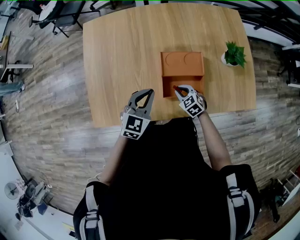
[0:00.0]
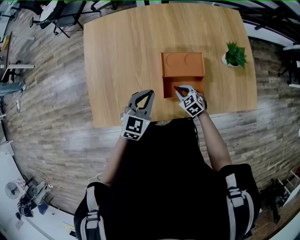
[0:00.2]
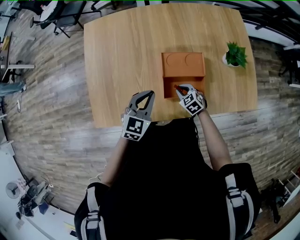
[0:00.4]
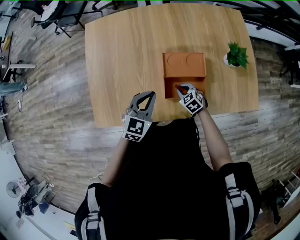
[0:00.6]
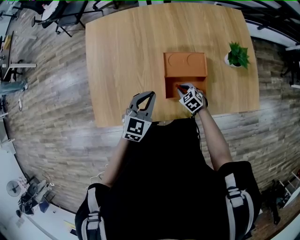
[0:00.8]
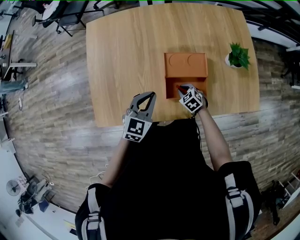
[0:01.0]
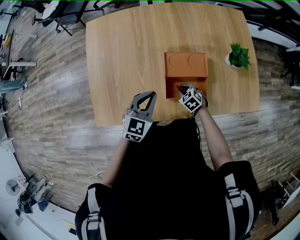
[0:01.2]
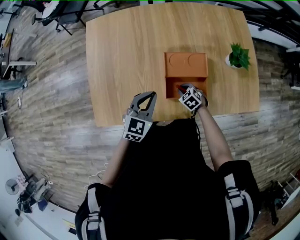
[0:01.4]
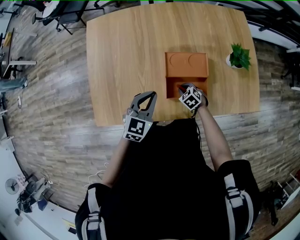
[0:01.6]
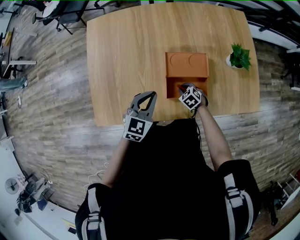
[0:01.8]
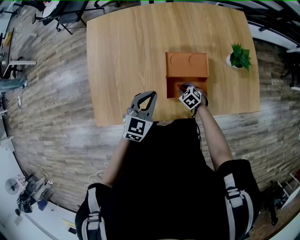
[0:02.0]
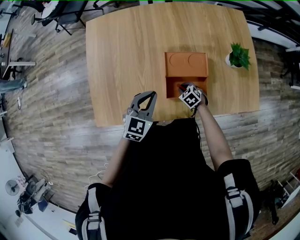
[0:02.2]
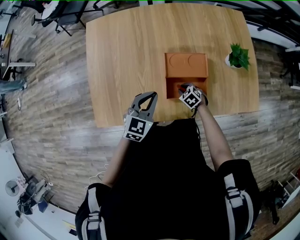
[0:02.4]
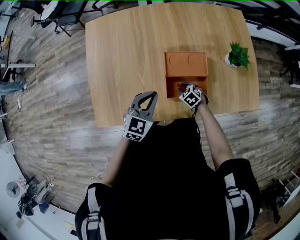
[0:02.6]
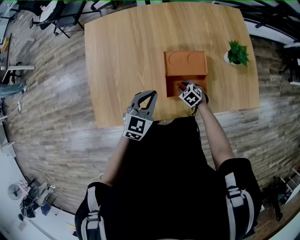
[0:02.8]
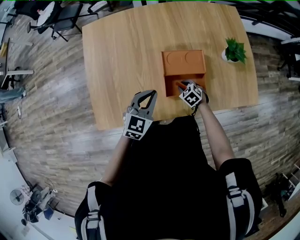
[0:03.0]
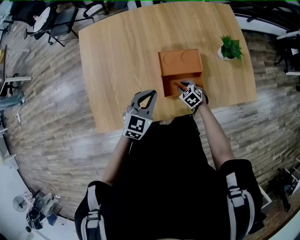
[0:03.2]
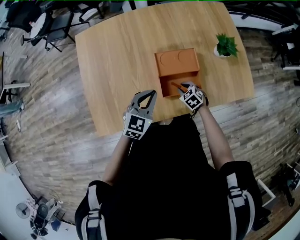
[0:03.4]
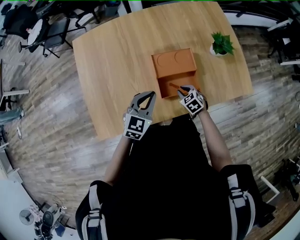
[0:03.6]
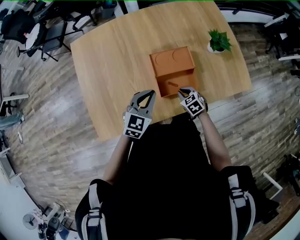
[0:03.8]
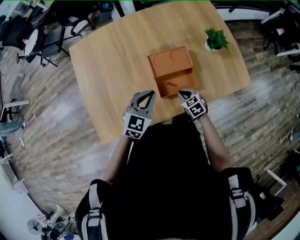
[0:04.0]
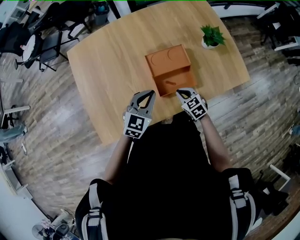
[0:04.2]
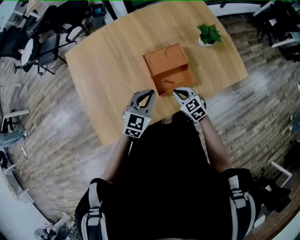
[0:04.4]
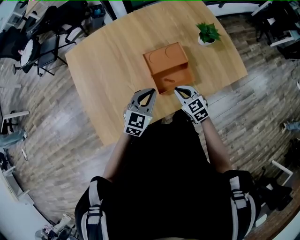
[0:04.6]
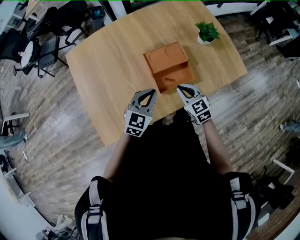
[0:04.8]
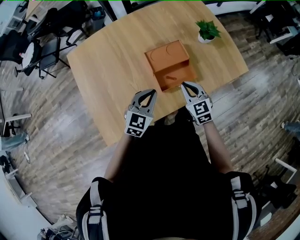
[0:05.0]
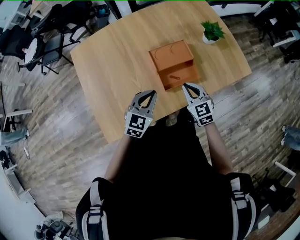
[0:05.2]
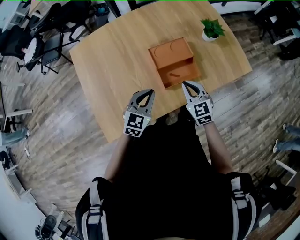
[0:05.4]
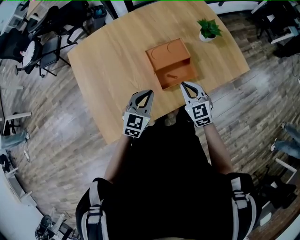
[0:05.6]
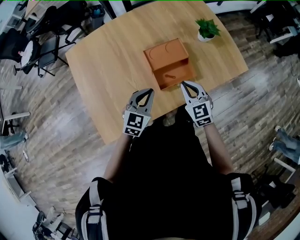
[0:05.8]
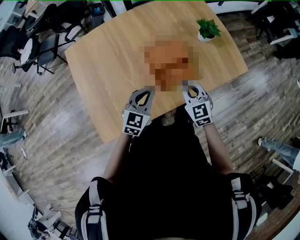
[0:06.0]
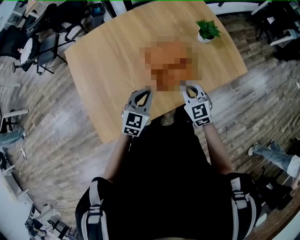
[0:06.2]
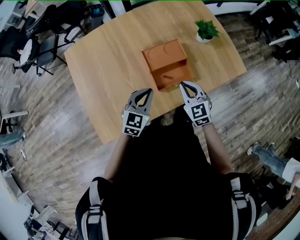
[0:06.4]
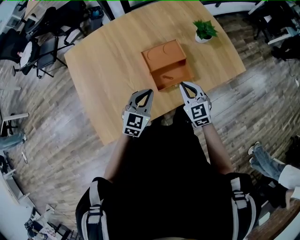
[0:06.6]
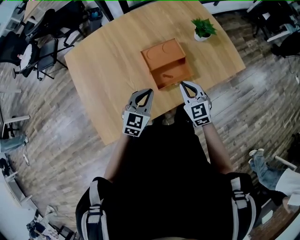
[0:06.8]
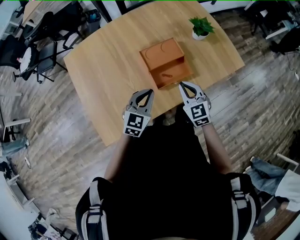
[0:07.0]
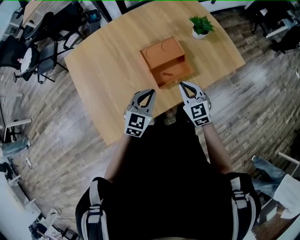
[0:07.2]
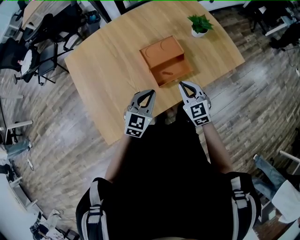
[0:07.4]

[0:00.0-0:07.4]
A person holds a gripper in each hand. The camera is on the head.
0:00.0 to 0:01.4: The right gripper goes roughly 5 cm downward.
0:01.4 to 0:03.0: Both grippers stay about where they are.
0:03.0 to 0:04.4: The right gripper travels upward and backward by about 15 cm, and turns by some 30 degrees.
0:04.4 to 0:06.0: The right gripper moves upward, roughly 10 cm, and turns by some 20 degrees.
0:06.0 to 0:07.4: The grippers make only small movements.

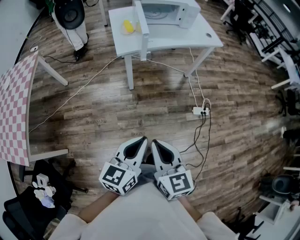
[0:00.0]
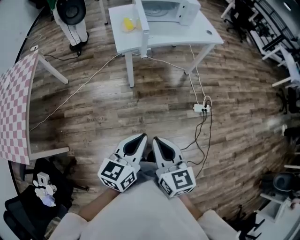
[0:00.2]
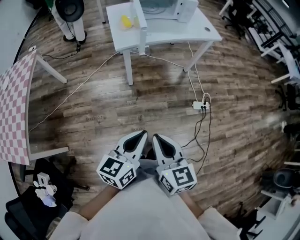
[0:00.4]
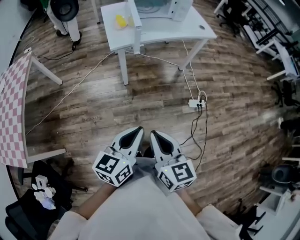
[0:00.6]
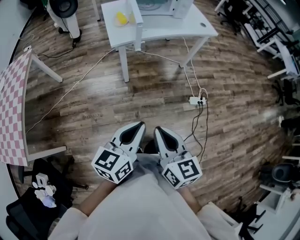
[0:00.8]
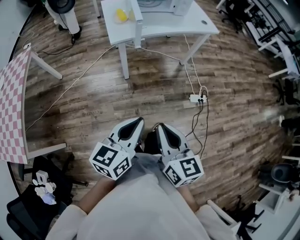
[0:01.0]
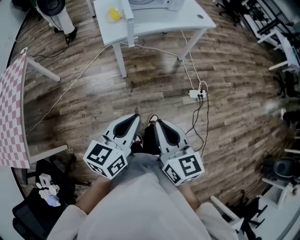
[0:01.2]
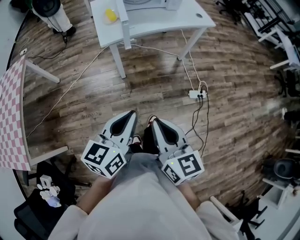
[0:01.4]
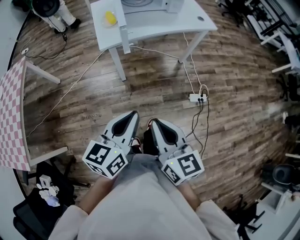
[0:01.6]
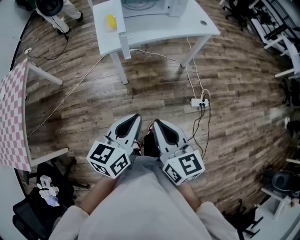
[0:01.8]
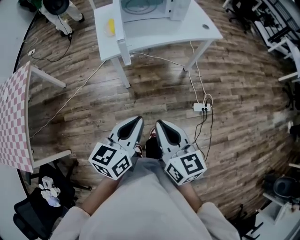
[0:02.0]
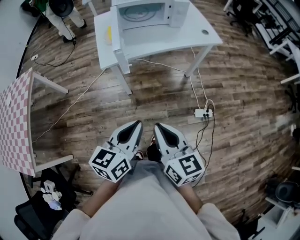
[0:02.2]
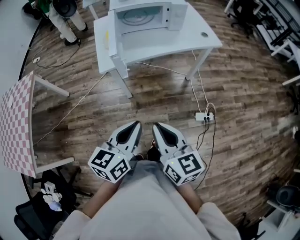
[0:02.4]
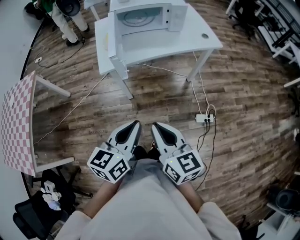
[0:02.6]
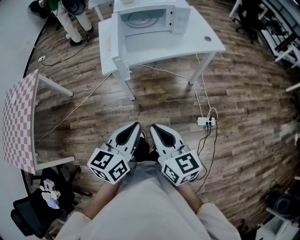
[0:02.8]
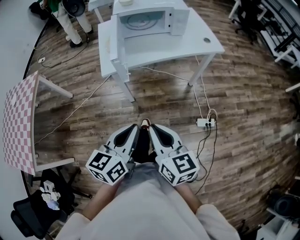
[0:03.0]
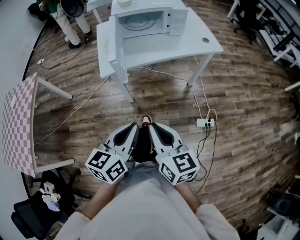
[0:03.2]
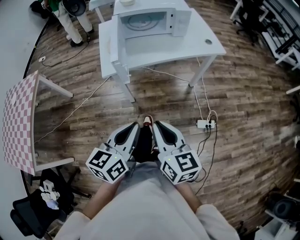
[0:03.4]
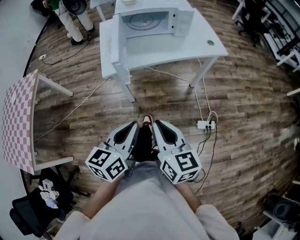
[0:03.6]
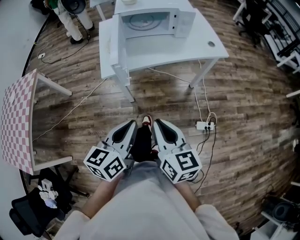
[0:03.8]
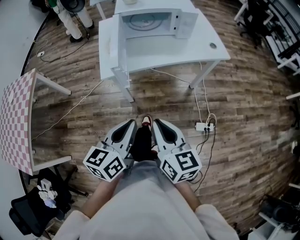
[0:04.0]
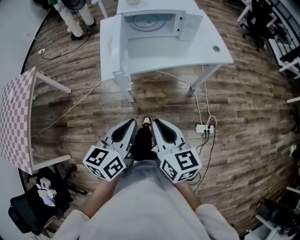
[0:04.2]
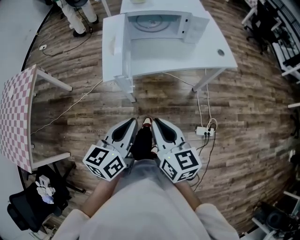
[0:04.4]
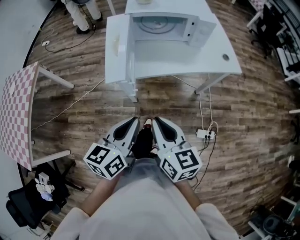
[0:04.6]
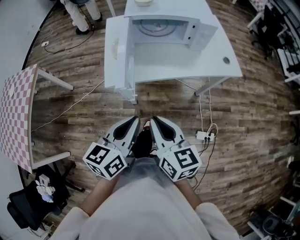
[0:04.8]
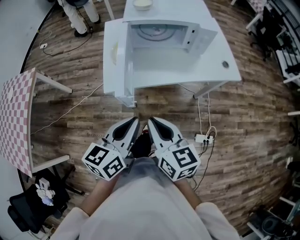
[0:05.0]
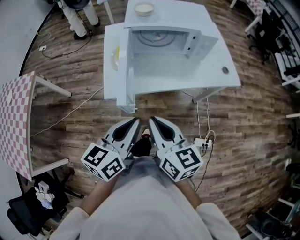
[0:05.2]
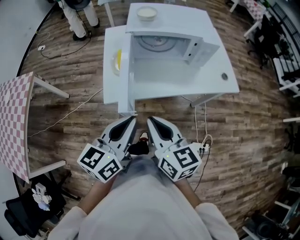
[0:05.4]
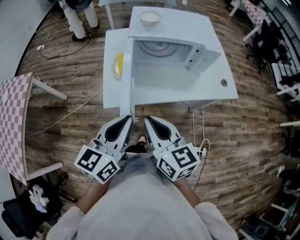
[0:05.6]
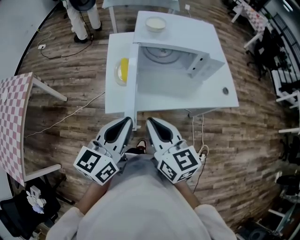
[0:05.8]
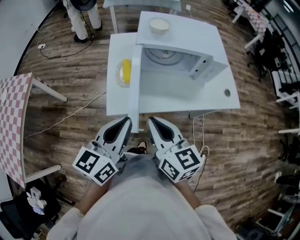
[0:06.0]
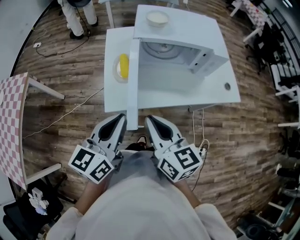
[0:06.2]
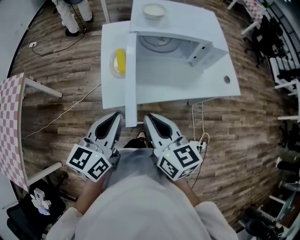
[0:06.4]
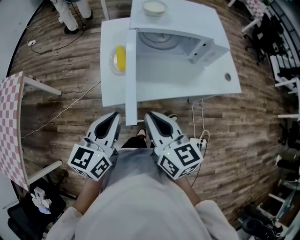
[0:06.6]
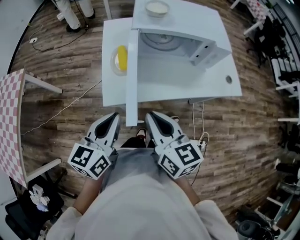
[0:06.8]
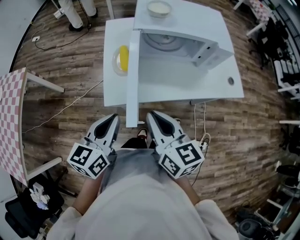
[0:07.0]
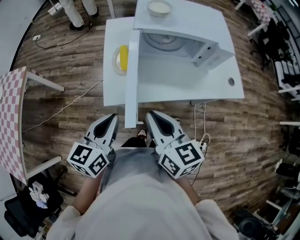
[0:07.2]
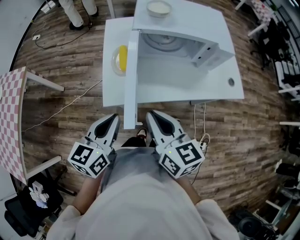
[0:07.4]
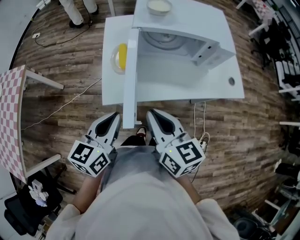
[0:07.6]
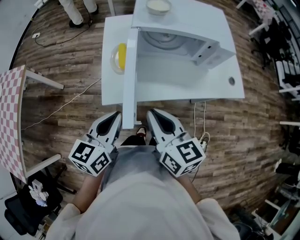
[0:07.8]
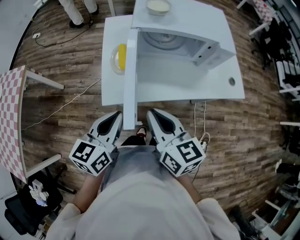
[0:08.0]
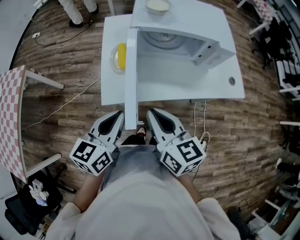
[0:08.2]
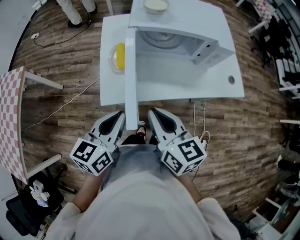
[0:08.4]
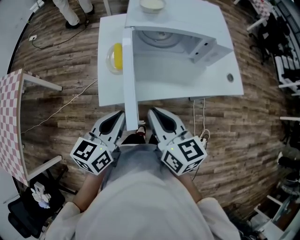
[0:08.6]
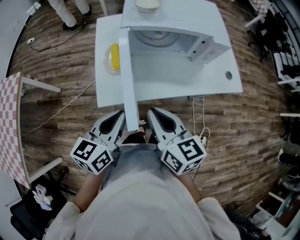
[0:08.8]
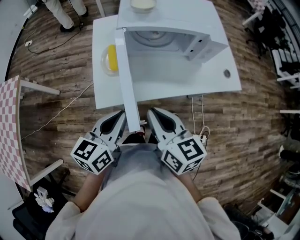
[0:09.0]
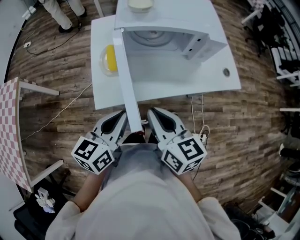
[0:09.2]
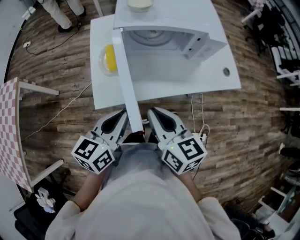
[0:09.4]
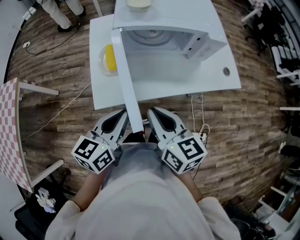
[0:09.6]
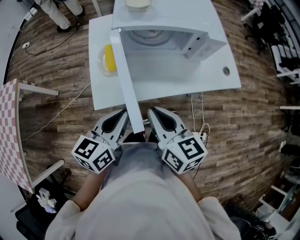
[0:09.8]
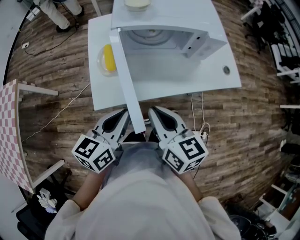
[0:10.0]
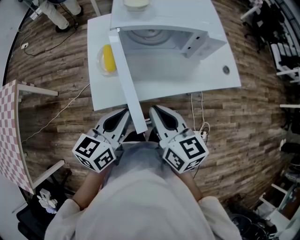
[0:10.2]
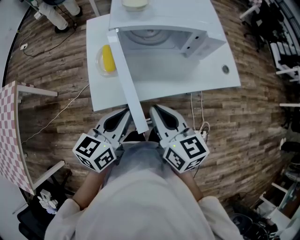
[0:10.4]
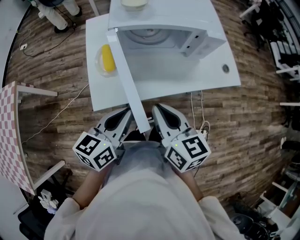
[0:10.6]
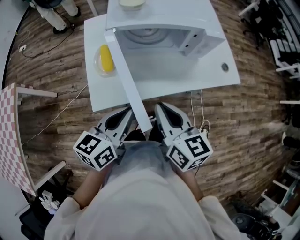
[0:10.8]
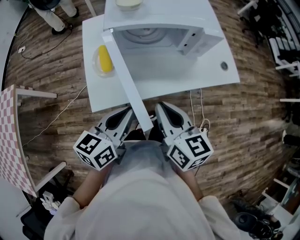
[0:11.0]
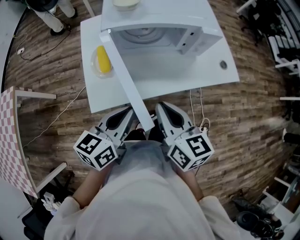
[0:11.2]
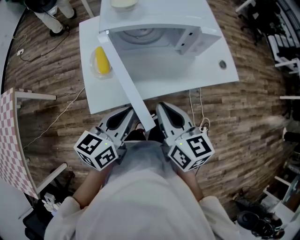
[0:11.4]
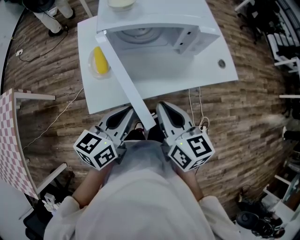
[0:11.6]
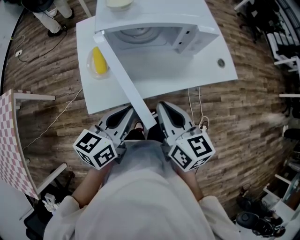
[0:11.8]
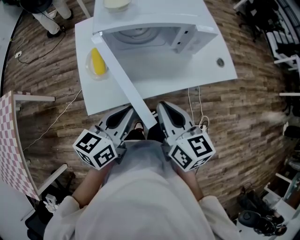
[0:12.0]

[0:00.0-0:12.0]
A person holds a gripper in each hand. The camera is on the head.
0:00.0 to 0:01.6: The left gripper shifts about 10 cm forward. The right gripper moves forward and to the right, some 10 cm.
0:01.6 to 0:03.0: Both grippers move forward and to the right, approximately 10 cm.
0:03.0 to 0:04.4: Both grippers move forward, some 10 cm.
0:04.4 to 0:06.0: The grippers both shift forward by some 20 cm.
0:06.0 to 0:07.6: The left gripper is displaced downward by some 5 cm.
0:07.6 to 0:09.0: The left gripper moves some 5 cm.
0:09.0 to 0:10.4: The grippers make only small movements.
0:10.4 to 0:12.0: The right gripper moves to the right, about 5 cm.

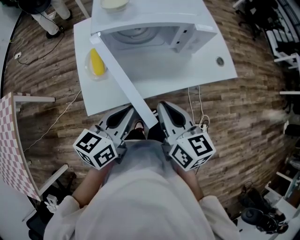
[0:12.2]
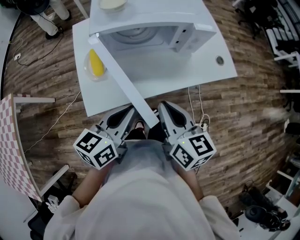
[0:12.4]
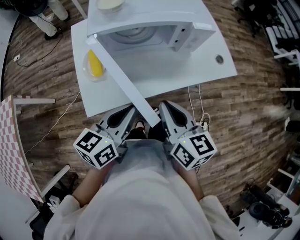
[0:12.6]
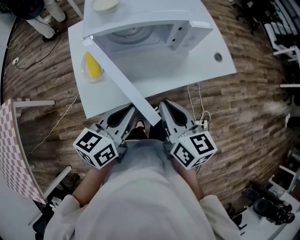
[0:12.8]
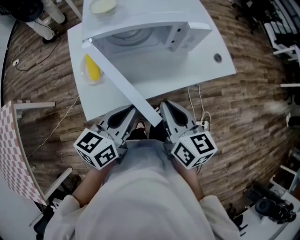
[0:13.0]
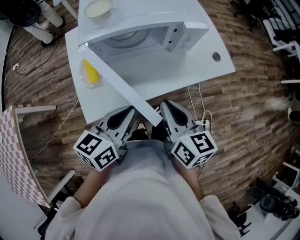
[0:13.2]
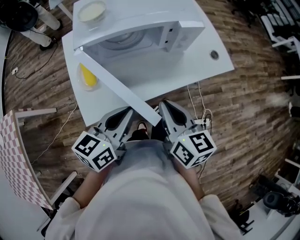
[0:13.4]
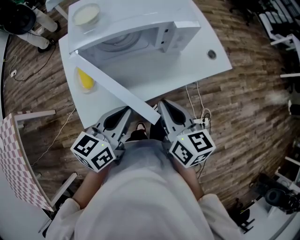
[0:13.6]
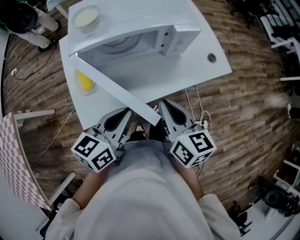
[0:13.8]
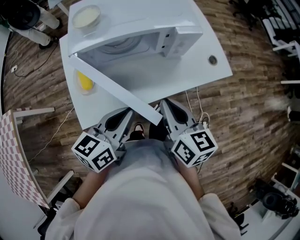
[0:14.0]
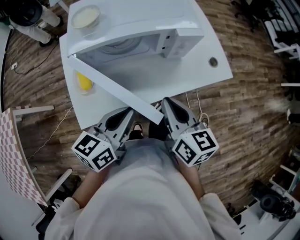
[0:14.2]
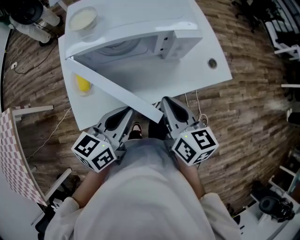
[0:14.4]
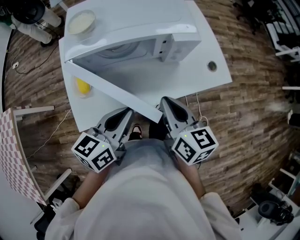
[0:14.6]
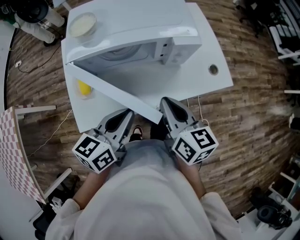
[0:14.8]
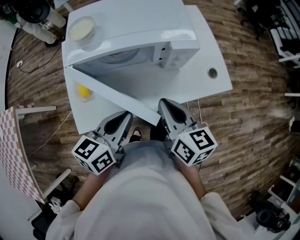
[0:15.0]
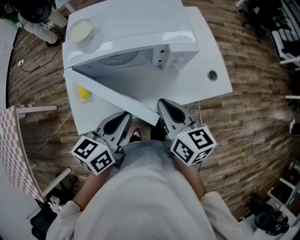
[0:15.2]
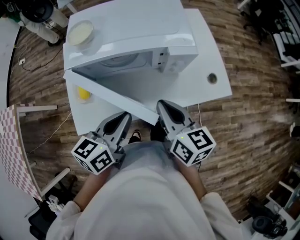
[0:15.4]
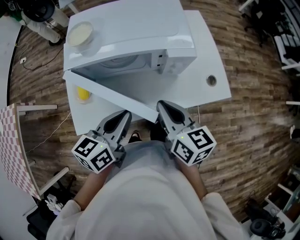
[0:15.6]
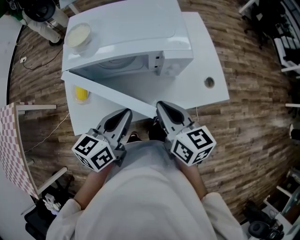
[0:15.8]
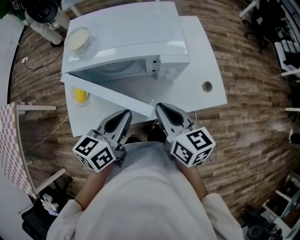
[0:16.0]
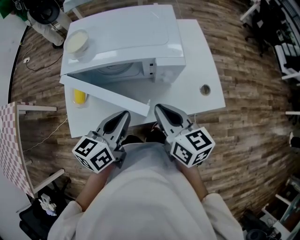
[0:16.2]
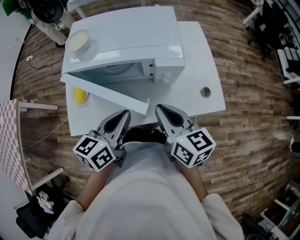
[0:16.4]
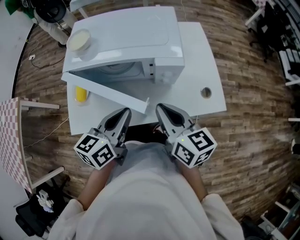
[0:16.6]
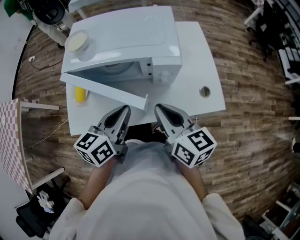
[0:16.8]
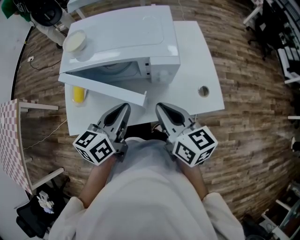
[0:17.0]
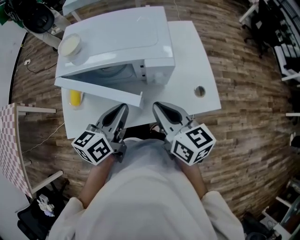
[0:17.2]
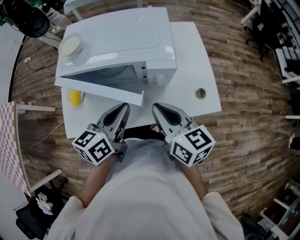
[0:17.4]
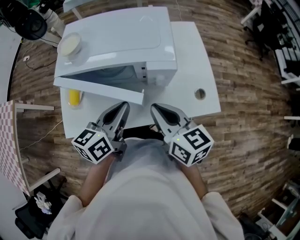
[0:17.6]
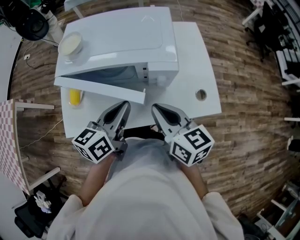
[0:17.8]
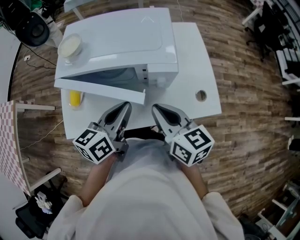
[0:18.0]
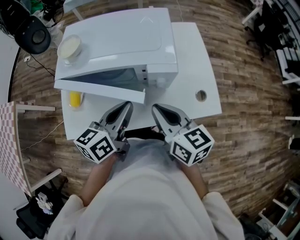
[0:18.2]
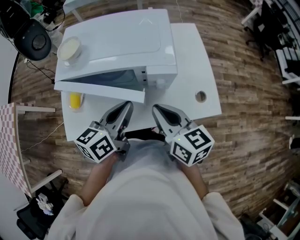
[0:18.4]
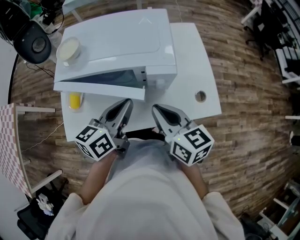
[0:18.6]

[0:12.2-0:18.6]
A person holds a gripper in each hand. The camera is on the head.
0:12.2 to 0:13.8: The left gripper moves roughly 5 cm. The right gripper moves to the right, approximately 5 cm.
0:13.8 to 0:15.4: The grippers both shift forward by approximately 5 cm.
0:15.4 to 0:17.0: Both grippers move to the right, approximately 5 cm.
0:17.0 to 0:18.6: The grippers move only a little.
